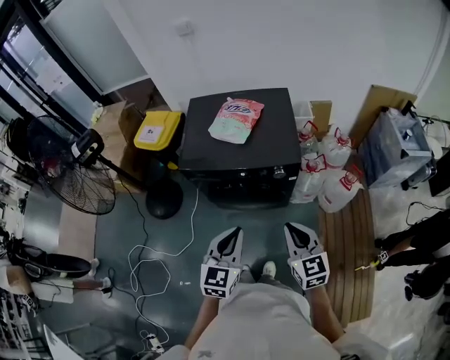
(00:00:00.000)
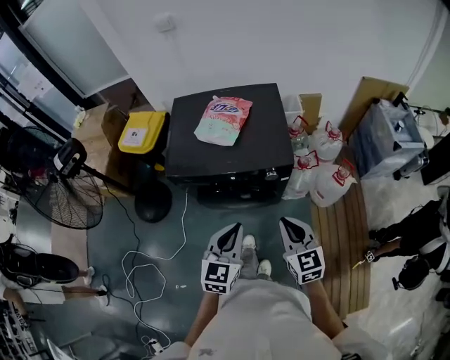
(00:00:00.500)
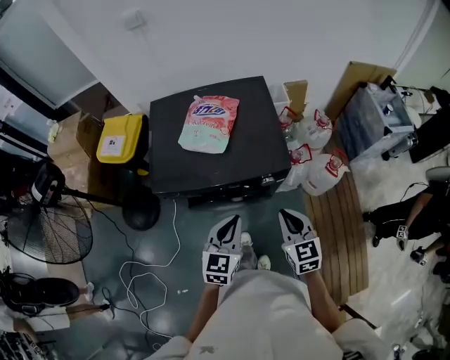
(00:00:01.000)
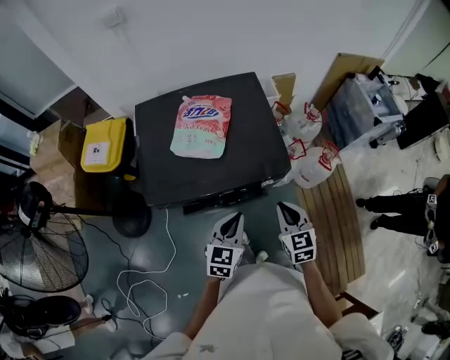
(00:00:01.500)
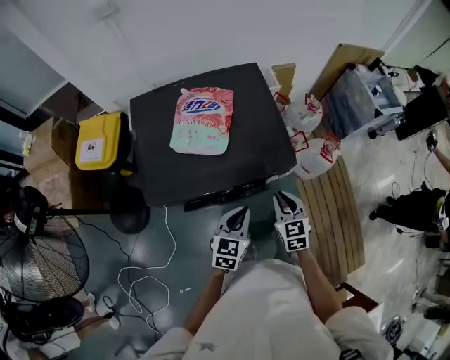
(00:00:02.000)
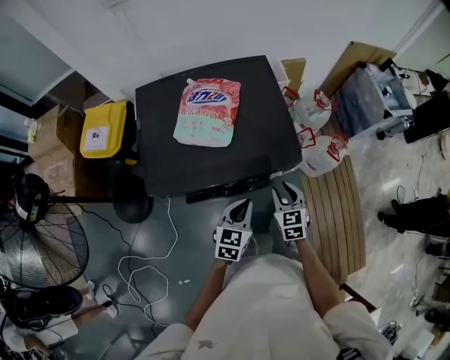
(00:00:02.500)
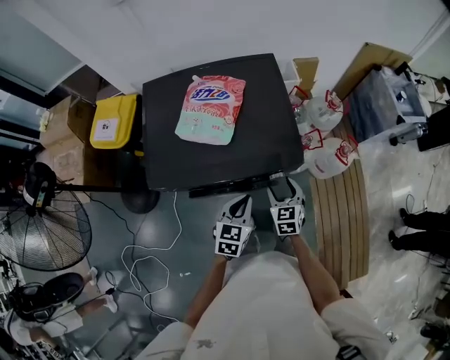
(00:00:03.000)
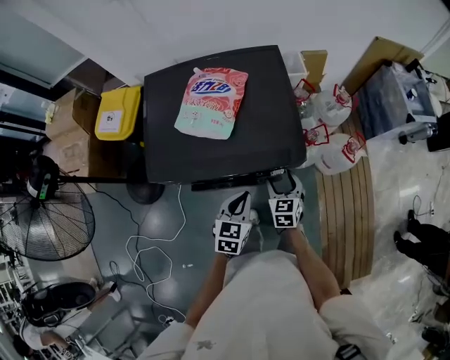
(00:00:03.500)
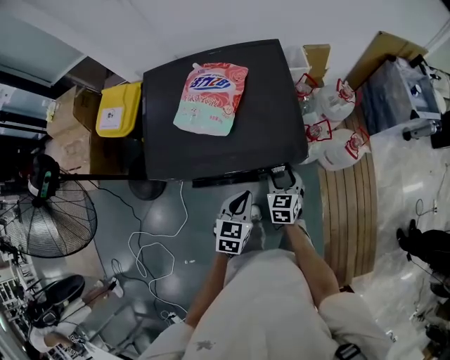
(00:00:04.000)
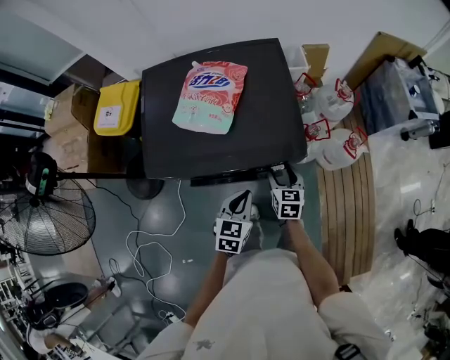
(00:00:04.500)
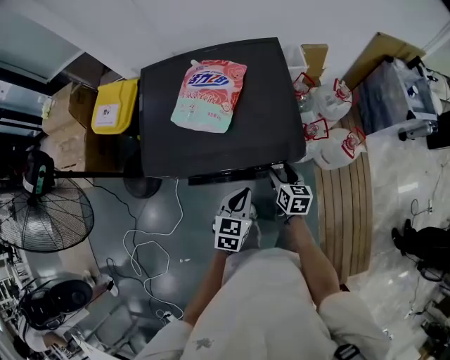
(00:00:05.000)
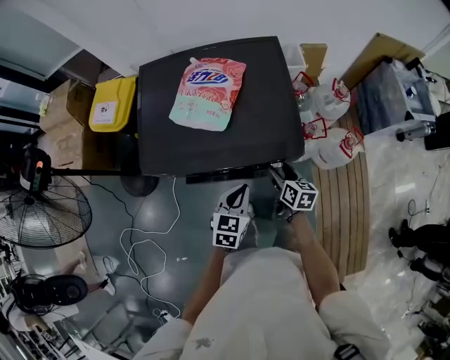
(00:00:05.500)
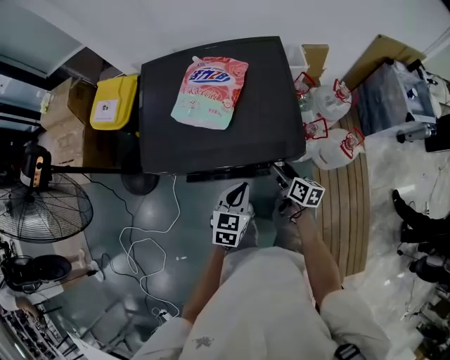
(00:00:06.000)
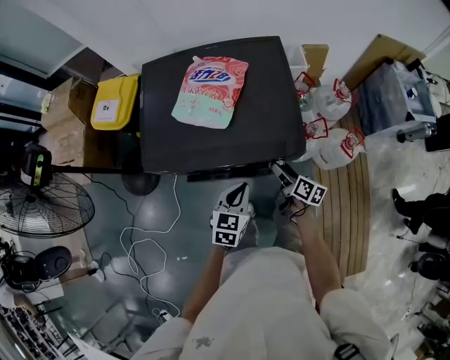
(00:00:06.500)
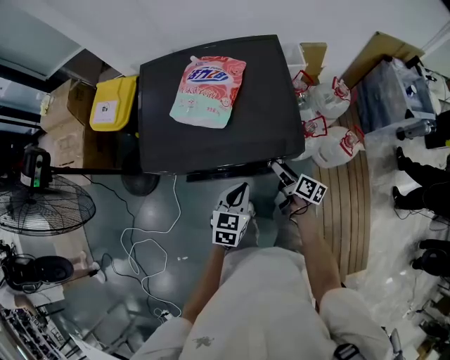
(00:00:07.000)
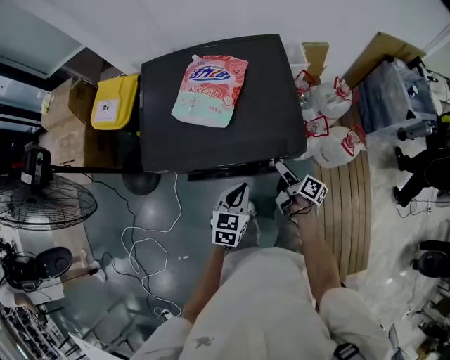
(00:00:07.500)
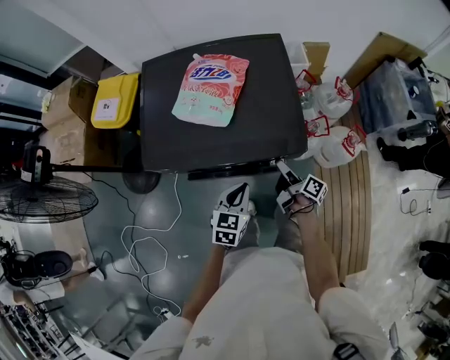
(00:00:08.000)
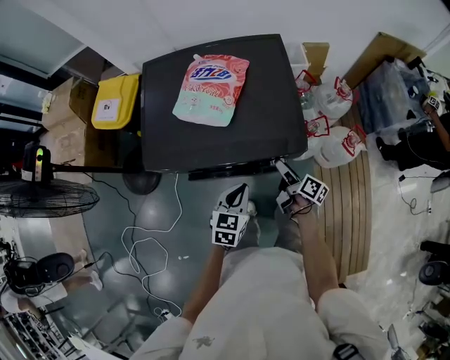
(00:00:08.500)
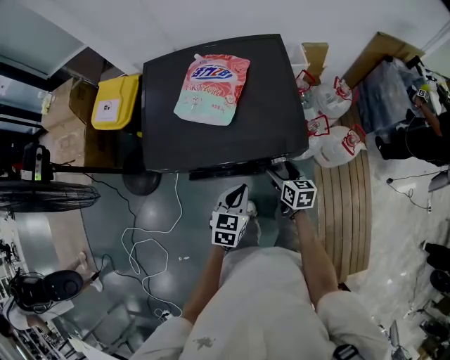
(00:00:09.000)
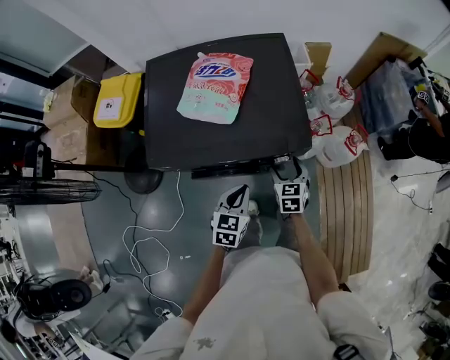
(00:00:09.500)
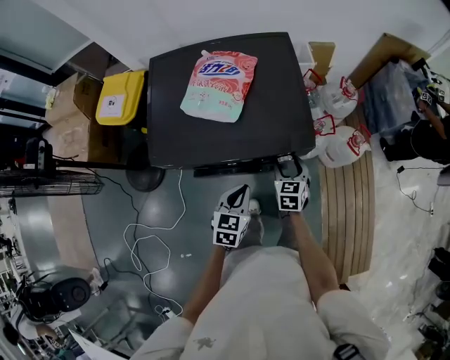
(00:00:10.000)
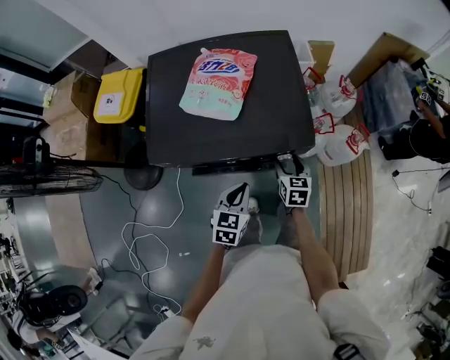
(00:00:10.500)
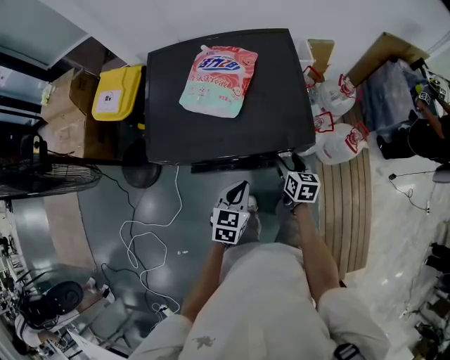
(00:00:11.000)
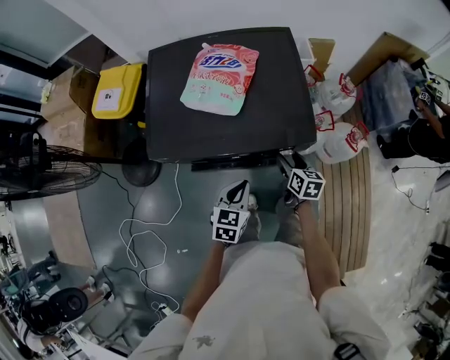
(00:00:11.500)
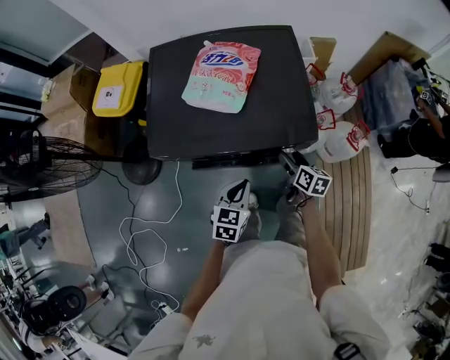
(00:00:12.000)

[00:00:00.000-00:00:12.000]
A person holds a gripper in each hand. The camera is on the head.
00:00:00.000 to 00:00:02.000: The two grippers go approximately 25 cm forward and downward. The right gripper turns by about 30 degrees, while the left gripper changes its angle by approximately 30 degrees.
00:00:02.000 to 00:00:04.000: The left gripper shifts some 5 cm downward; the right gripper shifts roughly 10 cm downward and forward, and opens.
00:00:04.000 to 00:00:06.000: The right gripper rotates around the line of its fingers by some 40 degrees, clockwise from behind.
00:00:06.000 to 00:00:08.000: The right gripper swivels about 40 degrees.
00:00:08.000 to 00:00:10.000: The right gripper rolls counterclockwise, seen from behind, by approximately 80 degrees.
00:00:10.000 to 00:00:12.000: The right gripper changes its angle by some 40 degrees.

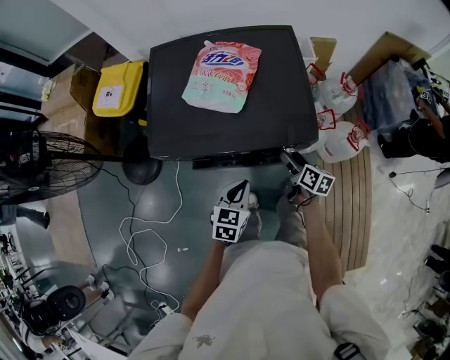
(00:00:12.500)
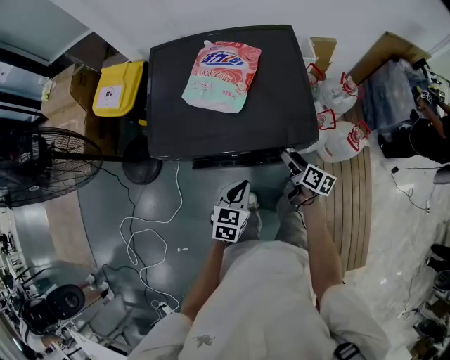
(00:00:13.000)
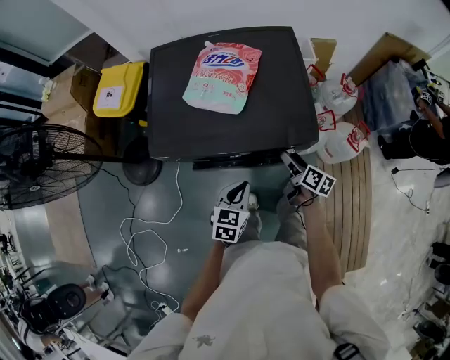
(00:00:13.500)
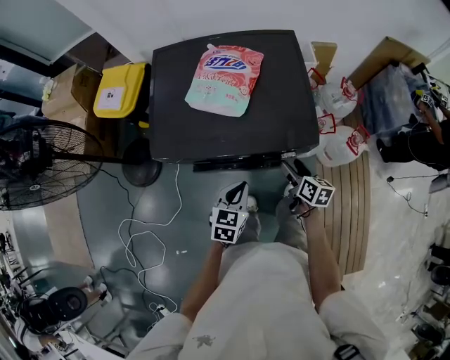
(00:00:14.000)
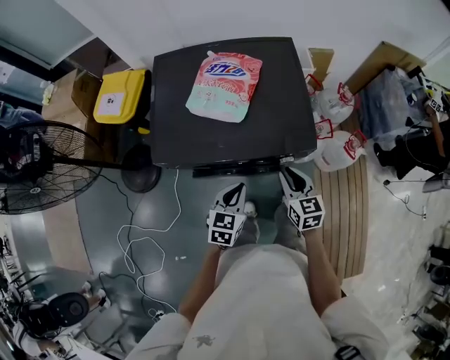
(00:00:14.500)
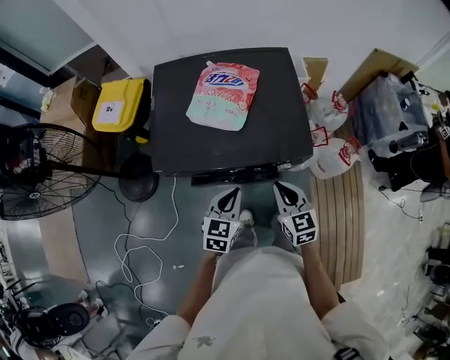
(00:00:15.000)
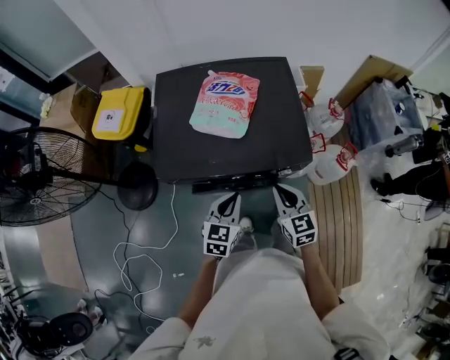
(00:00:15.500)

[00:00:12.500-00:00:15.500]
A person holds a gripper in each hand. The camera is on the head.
00:00:12.500 to 00:00:14.000: The grippers move only a little.
00:00:14.000 to 00:00:15.500: The right gripper goes about 15 cm upward and to the left, rolls counterclockwise, seen from behind, by about 40 degrees, and closes up, while the left gripper heads upward, covering about 5 cm.

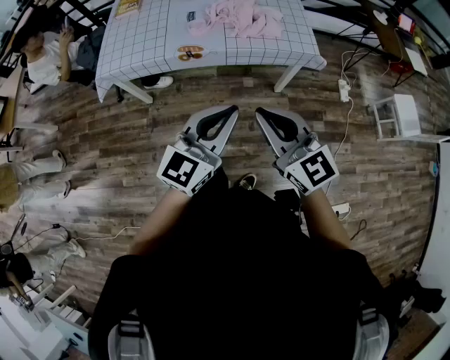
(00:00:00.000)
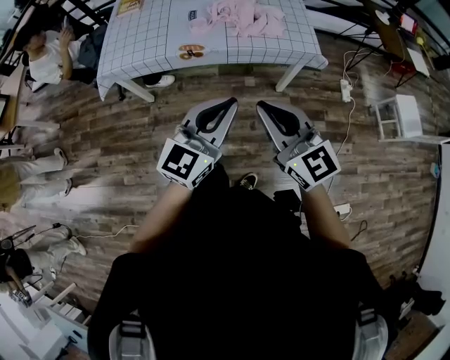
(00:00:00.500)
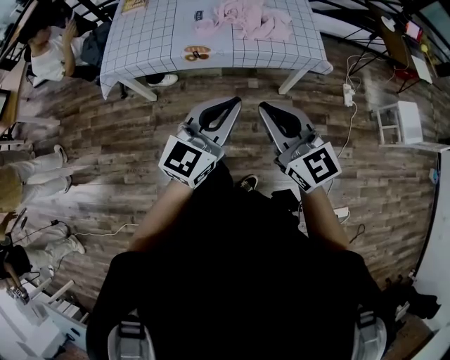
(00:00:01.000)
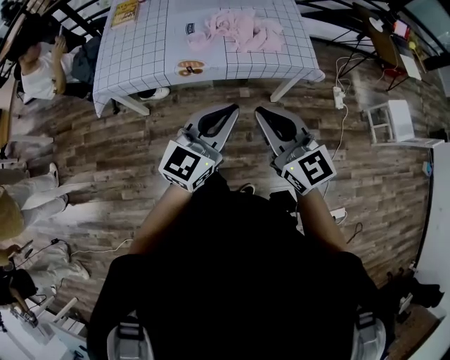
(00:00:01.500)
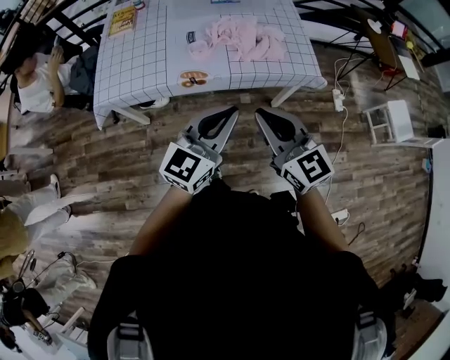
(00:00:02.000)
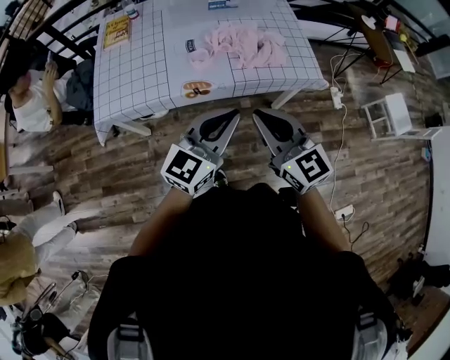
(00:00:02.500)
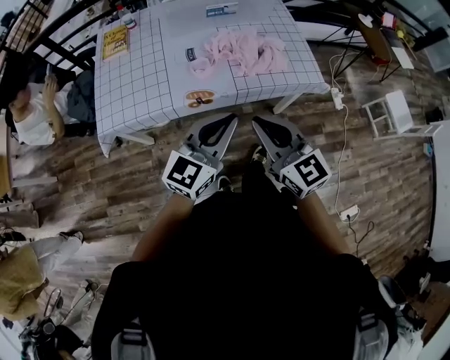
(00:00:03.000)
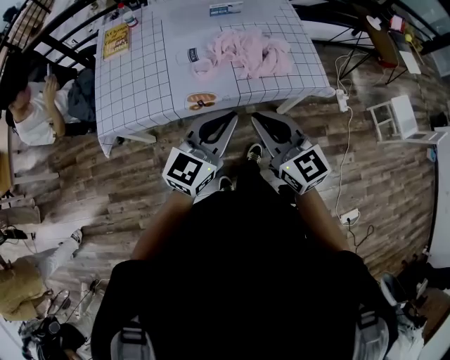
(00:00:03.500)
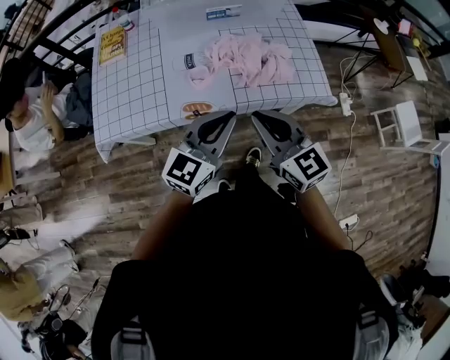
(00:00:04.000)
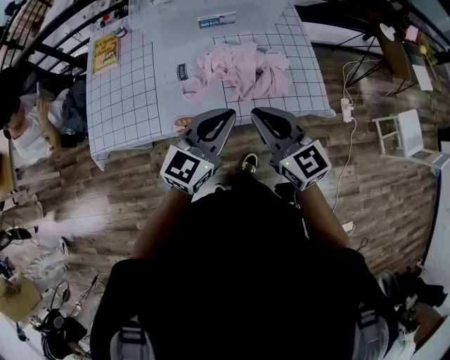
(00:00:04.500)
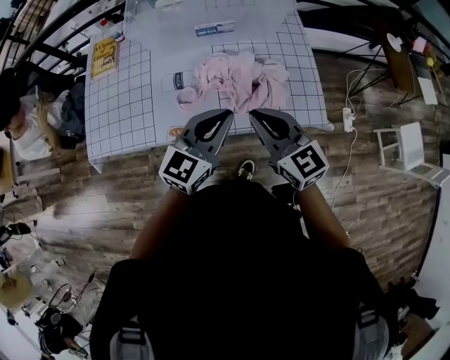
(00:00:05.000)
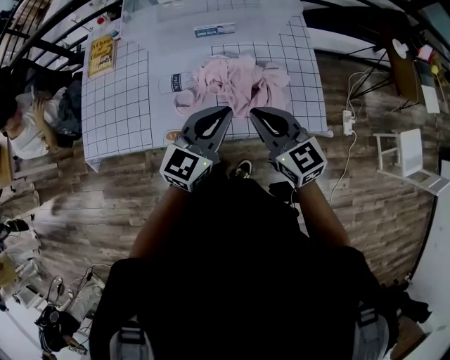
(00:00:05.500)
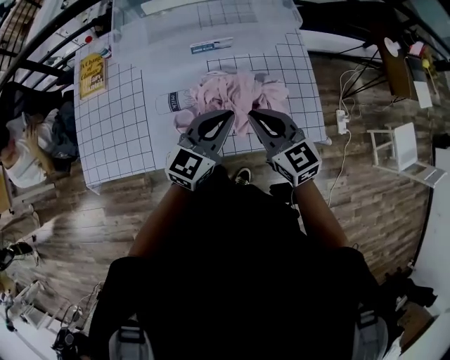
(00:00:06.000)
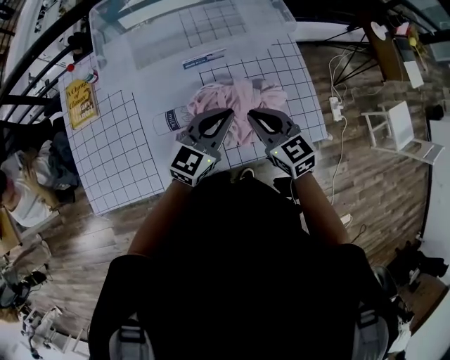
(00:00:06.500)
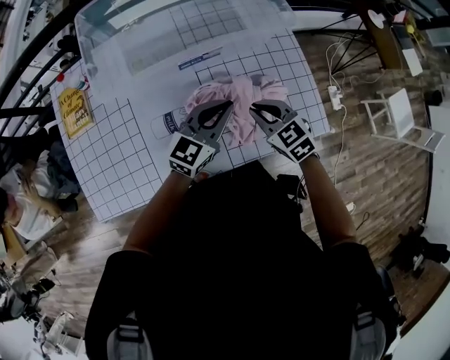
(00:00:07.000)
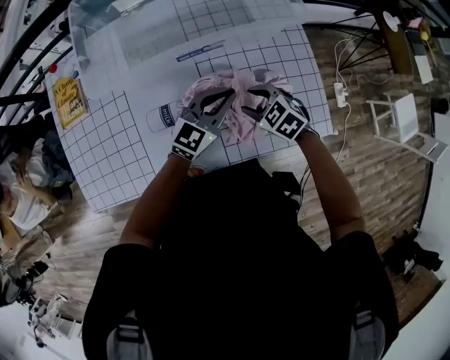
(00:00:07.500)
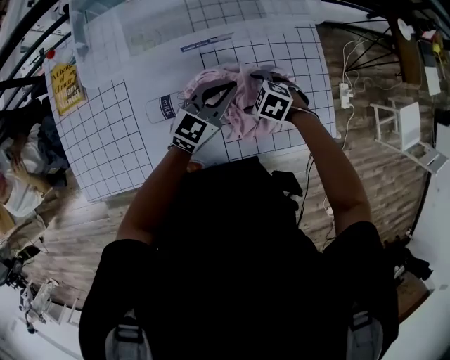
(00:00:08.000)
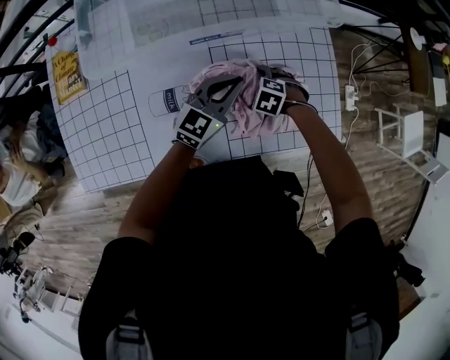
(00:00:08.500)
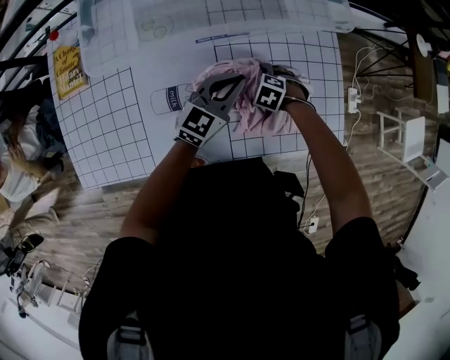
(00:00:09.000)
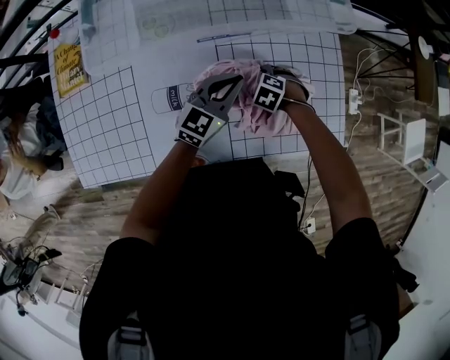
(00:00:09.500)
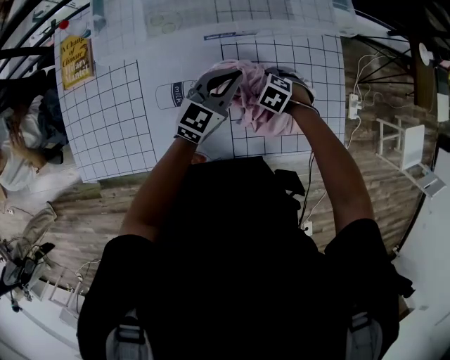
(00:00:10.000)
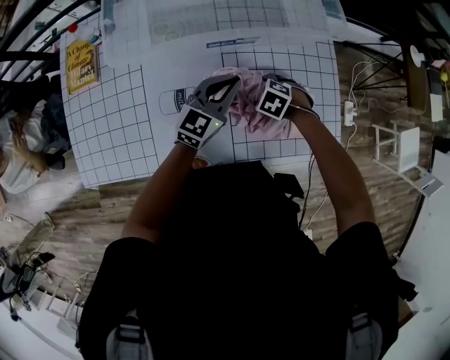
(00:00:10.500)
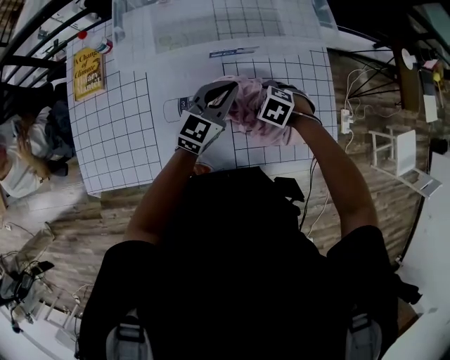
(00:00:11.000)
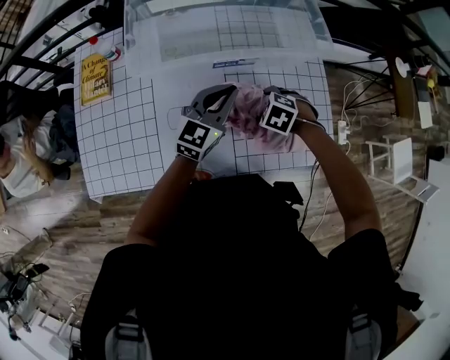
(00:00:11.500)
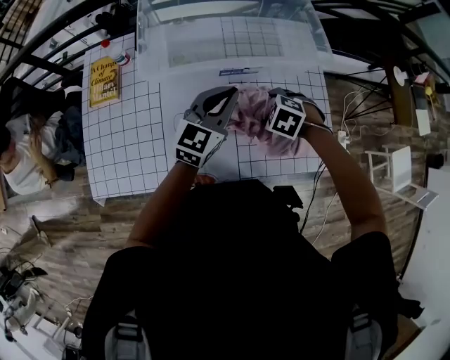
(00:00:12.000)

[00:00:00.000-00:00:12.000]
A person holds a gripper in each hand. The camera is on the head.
00:00:00.000 to 00:00:02.000: Both grippers travel together forward and to the left, about 15 cm.
00:00:02.000 to 00:00:04.000: The grippers both shift forward by roughly 15 cm.
00:00:04.000 to 00:00:06.000: The two grippers go about 25 cm forward.
00:00:06.000 to 00:00:08.000: The left gripper changes place by some 20 cm. Meanwhile the right gripper goes about 25 cm downward, points its fingers approximately 50 degrees further downward, and opens up.
00:00:08.000 to 00:00:10.000: The right gripper heads downward, covering approximately 5 cm.
00:00:10.000 to 00:00:12.000: Both grippers travel together upward, approximately 15 cm.
